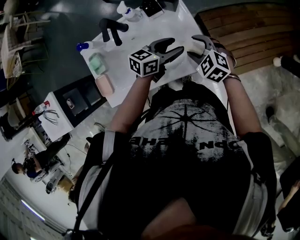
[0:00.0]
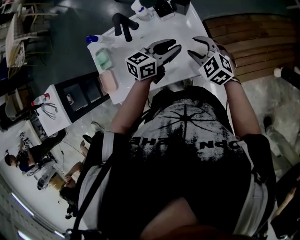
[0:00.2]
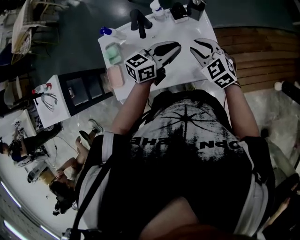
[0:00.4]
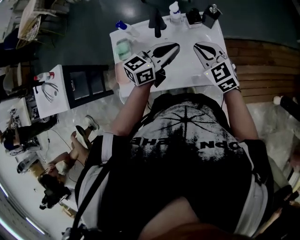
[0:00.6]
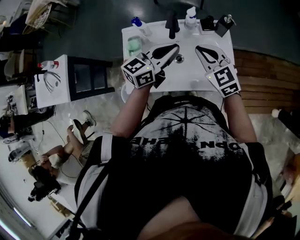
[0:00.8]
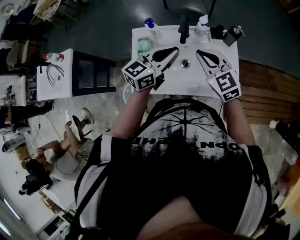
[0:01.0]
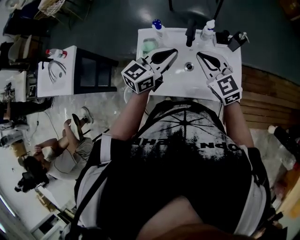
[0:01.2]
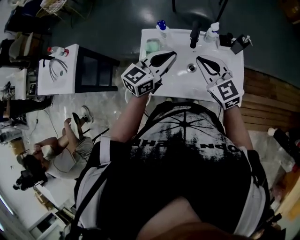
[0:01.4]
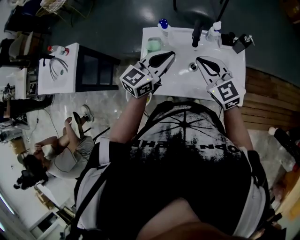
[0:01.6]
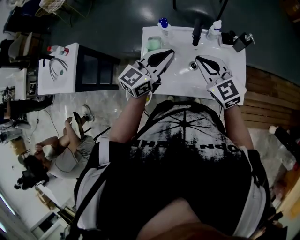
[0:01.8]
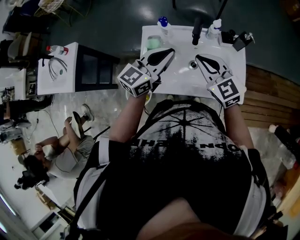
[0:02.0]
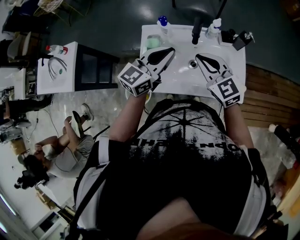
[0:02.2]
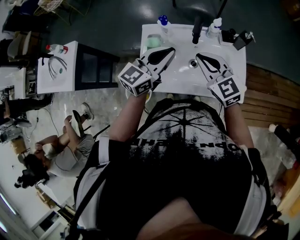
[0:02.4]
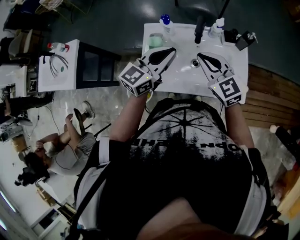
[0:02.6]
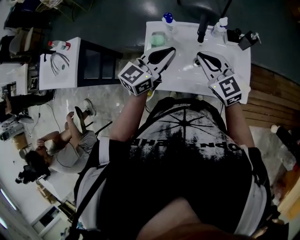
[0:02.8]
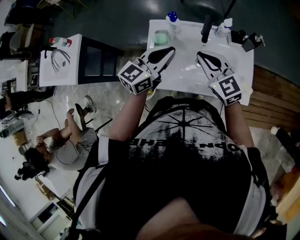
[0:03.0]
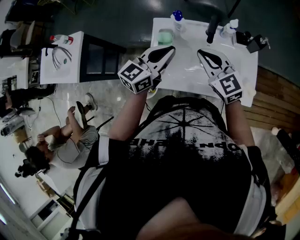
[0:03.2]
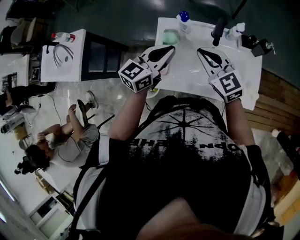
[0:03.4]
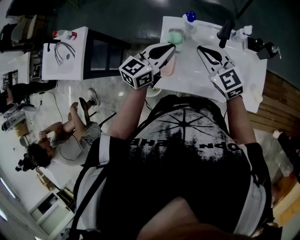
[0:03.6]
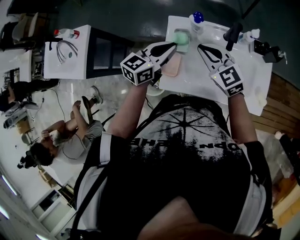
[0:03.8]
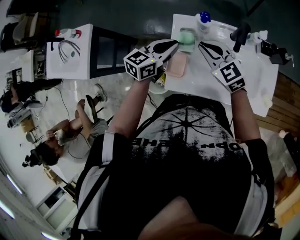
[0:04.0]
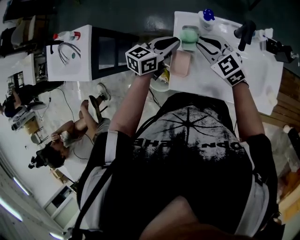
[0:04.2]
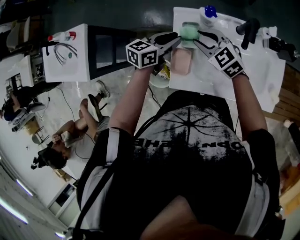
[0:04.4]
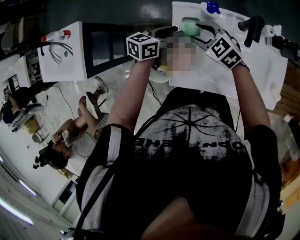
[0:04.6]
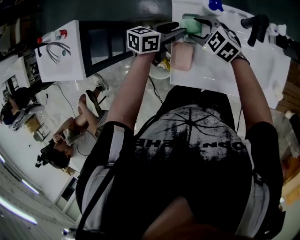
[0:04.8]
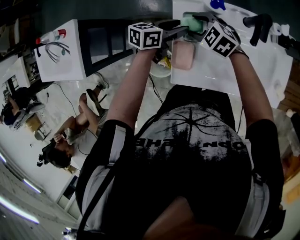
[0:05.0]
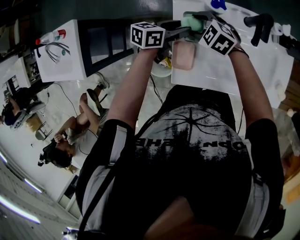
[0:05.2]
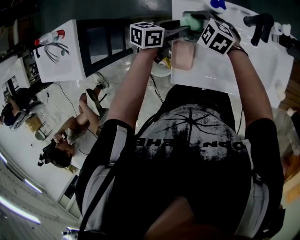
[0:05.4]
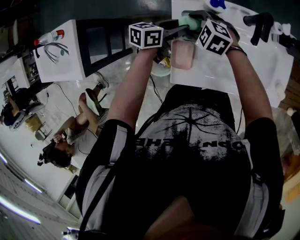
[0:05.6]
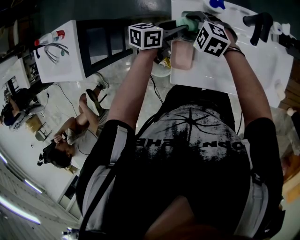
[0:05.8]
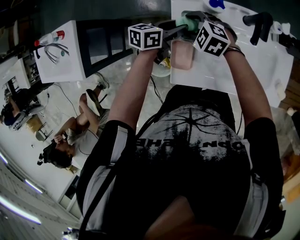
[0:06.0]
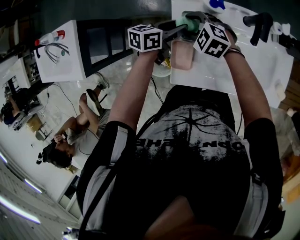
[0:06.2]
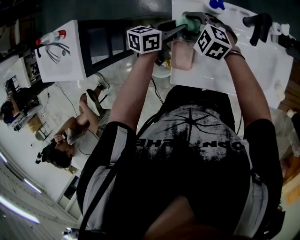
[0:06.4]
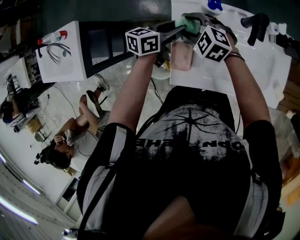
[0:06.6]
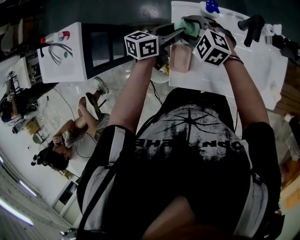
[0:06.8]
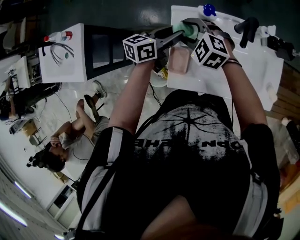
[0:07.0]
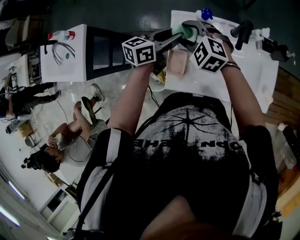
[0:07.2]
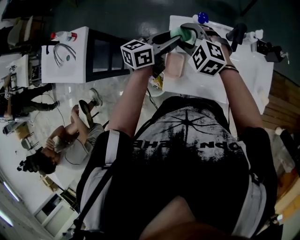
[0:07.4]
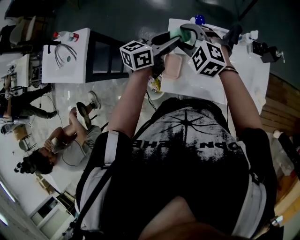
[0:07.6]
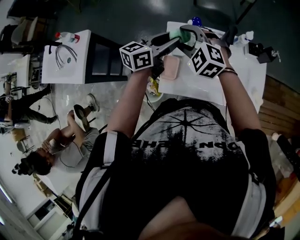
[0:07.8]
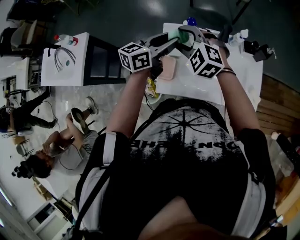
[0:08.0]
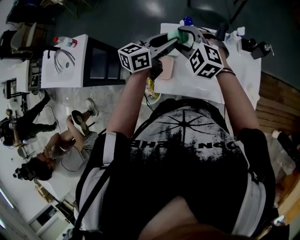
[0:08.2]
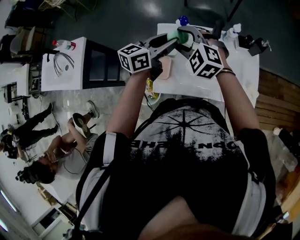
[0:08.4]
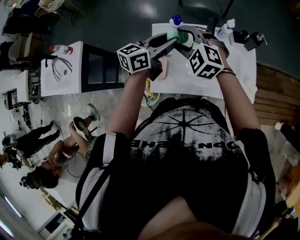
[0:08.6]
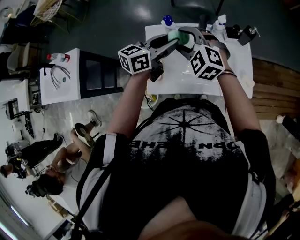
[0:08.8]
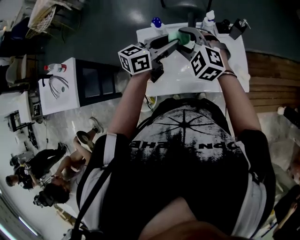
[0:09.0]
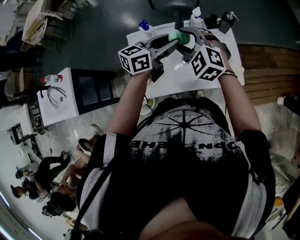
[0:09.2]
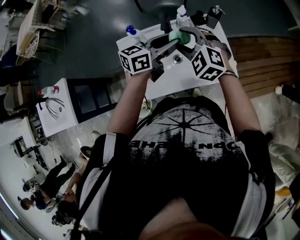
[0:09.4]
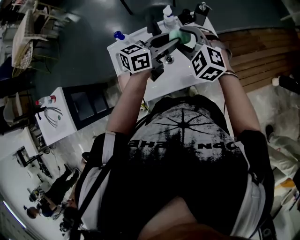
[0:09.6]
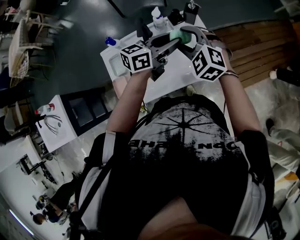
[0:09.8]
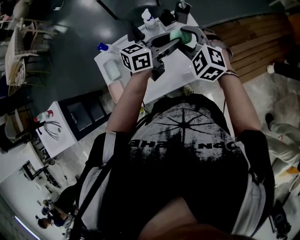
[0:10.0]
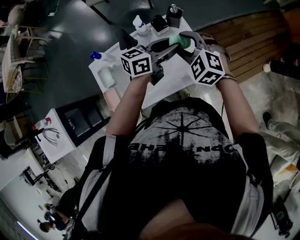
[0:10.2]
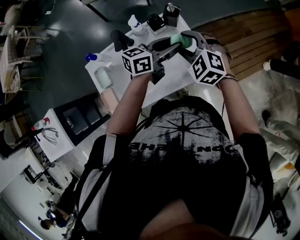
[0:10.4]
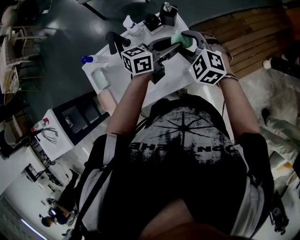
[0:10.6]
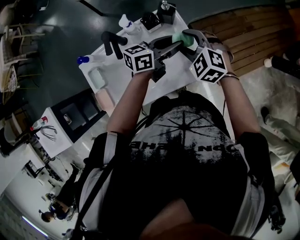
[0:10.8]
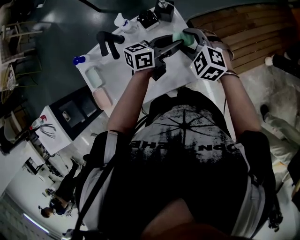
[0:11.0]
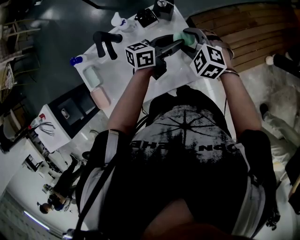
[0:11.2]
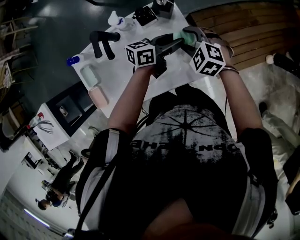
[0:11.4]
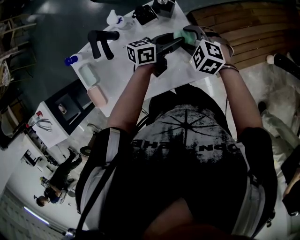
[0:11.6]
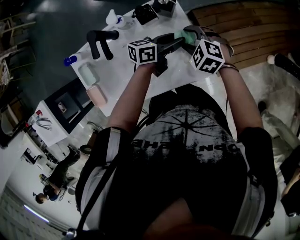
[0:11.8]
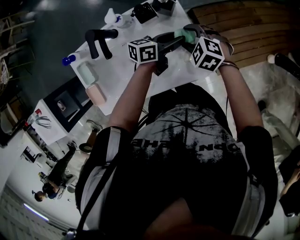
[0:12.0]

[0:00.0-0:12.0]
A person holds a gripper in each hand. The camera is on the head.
0:00.0 to 0:01.6: The right gripper moves roughly 30 cm, points its fingers approximately 30 degrees further upward, and closes its fingers; the left gripper changes place by some 35 cm, swivels about 40 degrees, and closes up.
0:01.6 to 0:03.0: The grippers stay close to where they were, moving slightly.
0:03.0 to 0:04.4: The right gripper travels to the left, downward and forward by some 20 cm, changes its angle by about 20 degrees, and opens its fingers, while the left gripper travels downward, to the left and forward by roughly 20 cm, and changes its angle by some 30 degrees.
0:04.4 to 0:06.0: The grippers both shift downward by some 10 cm. The right gripper changes its angle by approximately 20 degrees, and opens its fingers.
0:06.0 to 0:07.6: The two grippers go some 15 cm upward. The left gripper rotates roughly 20 degrees. The right gripper swivels approximately 20 degrees.
0:07.6 to 0:09.0: The two grippers go approximately 15 cm to the right.
0:09.0 to 0:10.4: Both grippers travel together to the right and forward, about 25 cm. The left gripper changes its angle by some 20 degrees. Meanwhile the right gripper swivels approximately 20 degrees.
0:10.4 to 0:12.0: Both grippers move downward, some 15 cm. The right gripper rotates approximately 20 degrees.

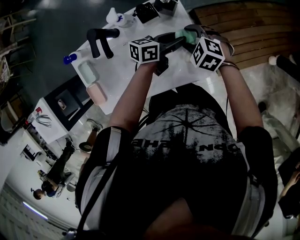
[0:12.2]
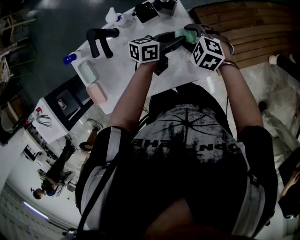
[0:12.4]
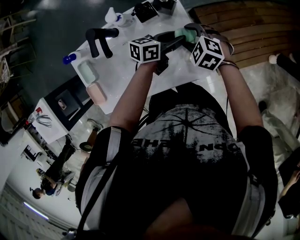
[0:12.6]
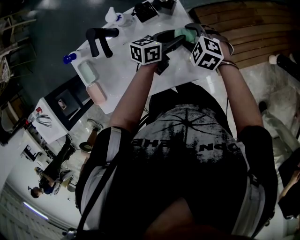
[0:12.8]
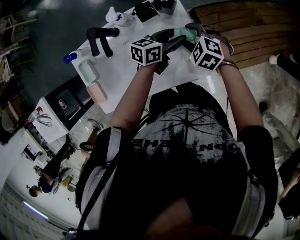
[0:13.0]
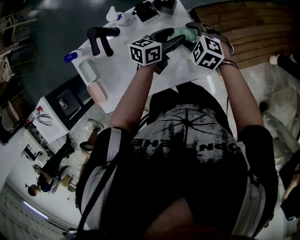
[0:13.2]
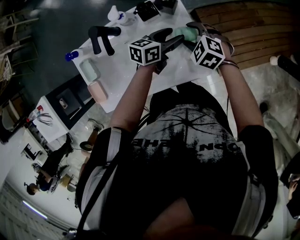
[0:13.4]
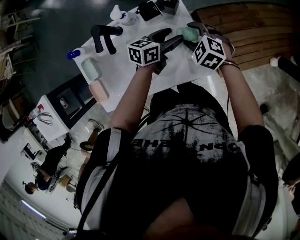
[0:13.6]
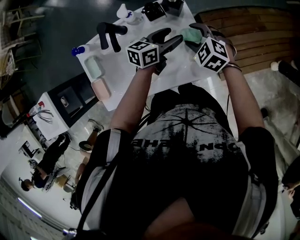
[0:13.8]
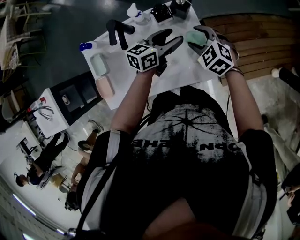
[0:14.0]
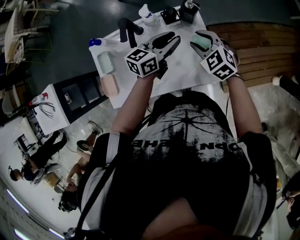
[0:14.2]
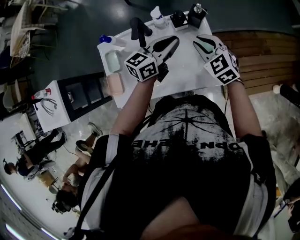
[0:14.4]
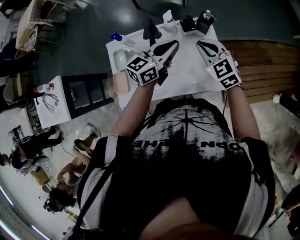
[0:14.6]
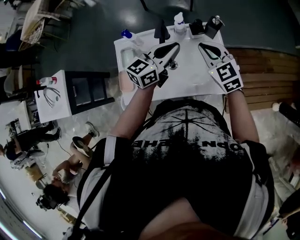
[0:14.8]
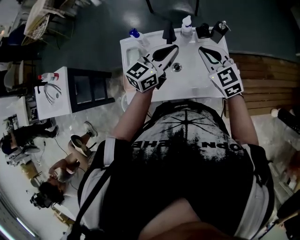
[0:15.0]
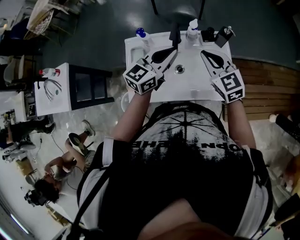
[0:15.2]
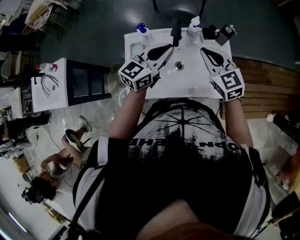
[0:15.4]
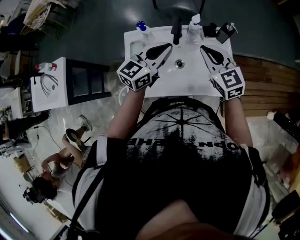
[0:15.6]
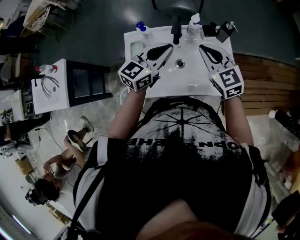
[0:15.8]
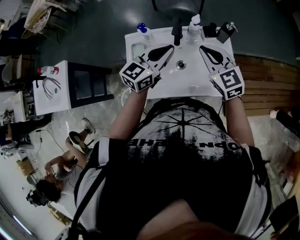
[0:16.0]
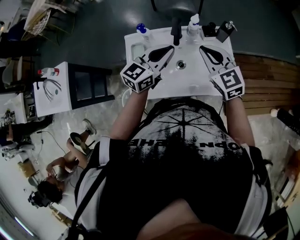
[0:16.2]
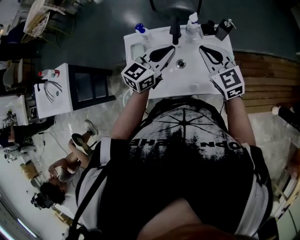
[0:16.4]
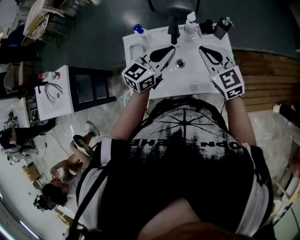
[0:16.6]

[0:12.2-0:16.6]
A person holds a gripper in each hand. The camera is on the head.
0:12.2 to 0:13.6: The left gripper opens up.
0:13.6 to 0:15.2: The left gripper travels to the left, upward and backward by about 35 cm, turns by approximately 40 degrees, and closes its fingers. The right gripper goes roughly 25 cm upward and to the left, points its fingers some 30 degrees further upward, and closes its fingers.
0:15.2 to 0:16.6: The grippers make only small movements.

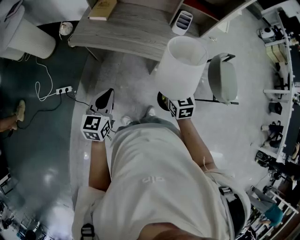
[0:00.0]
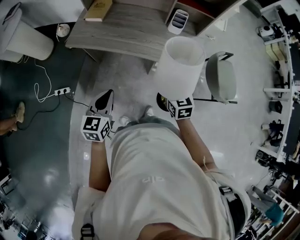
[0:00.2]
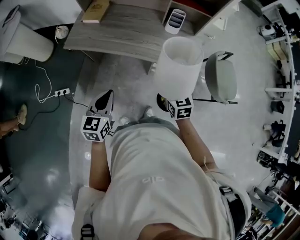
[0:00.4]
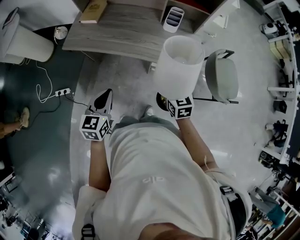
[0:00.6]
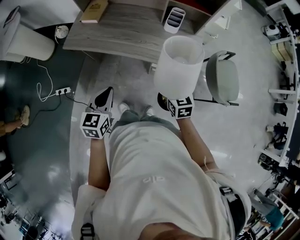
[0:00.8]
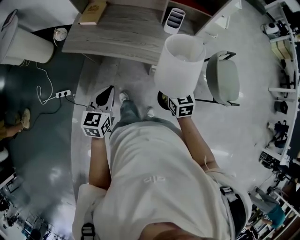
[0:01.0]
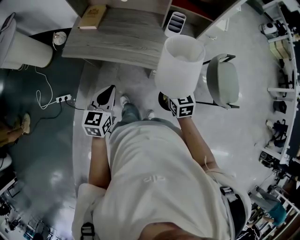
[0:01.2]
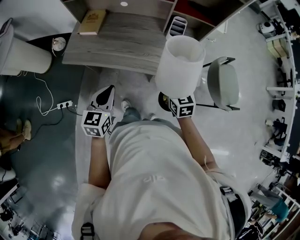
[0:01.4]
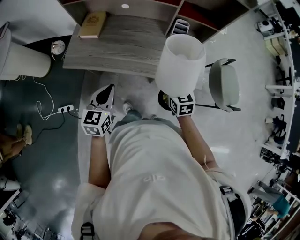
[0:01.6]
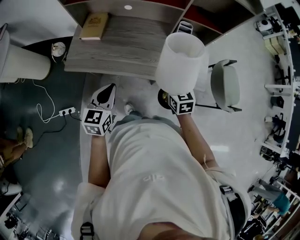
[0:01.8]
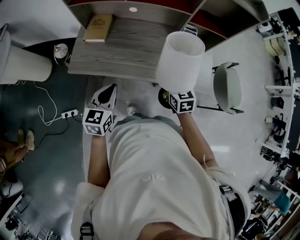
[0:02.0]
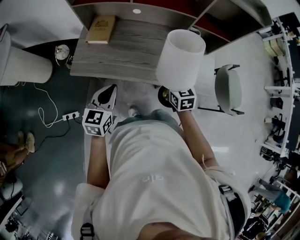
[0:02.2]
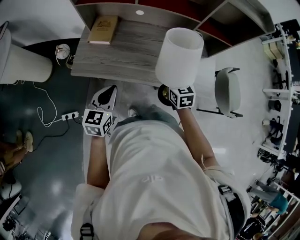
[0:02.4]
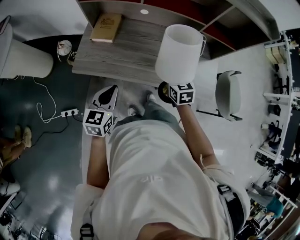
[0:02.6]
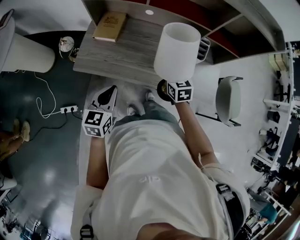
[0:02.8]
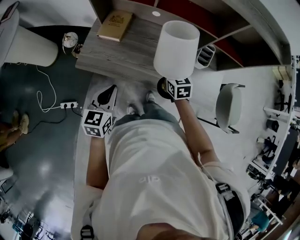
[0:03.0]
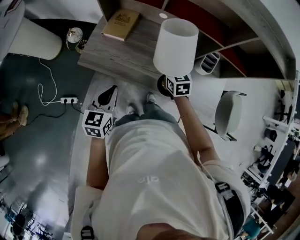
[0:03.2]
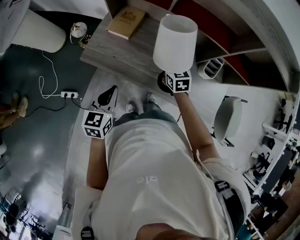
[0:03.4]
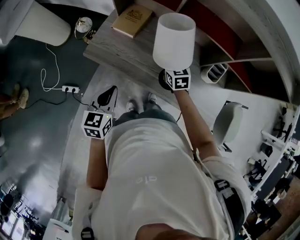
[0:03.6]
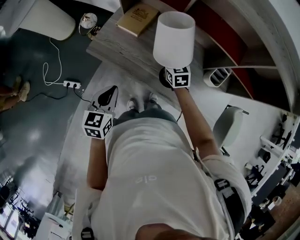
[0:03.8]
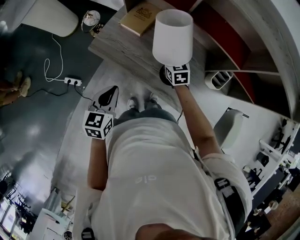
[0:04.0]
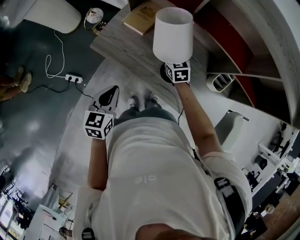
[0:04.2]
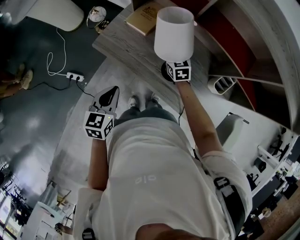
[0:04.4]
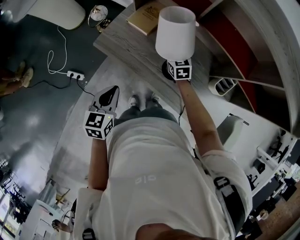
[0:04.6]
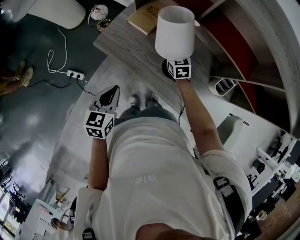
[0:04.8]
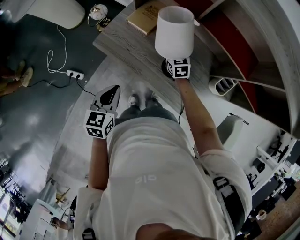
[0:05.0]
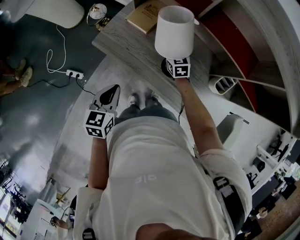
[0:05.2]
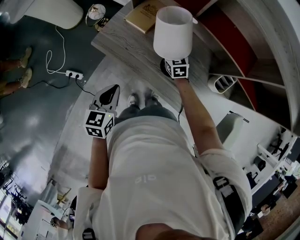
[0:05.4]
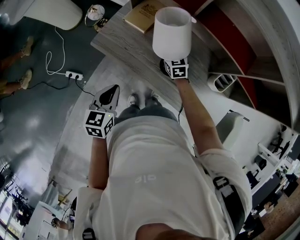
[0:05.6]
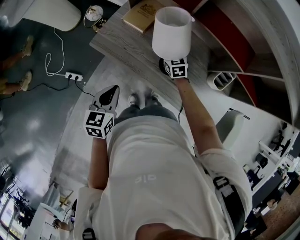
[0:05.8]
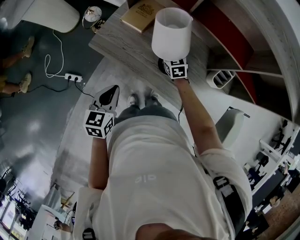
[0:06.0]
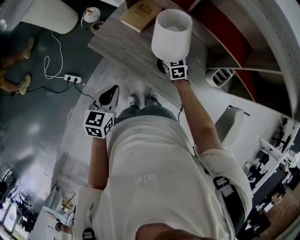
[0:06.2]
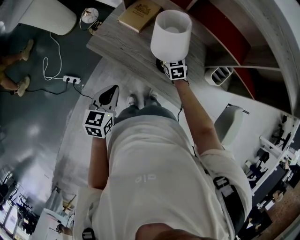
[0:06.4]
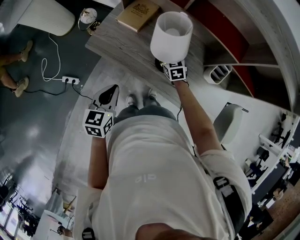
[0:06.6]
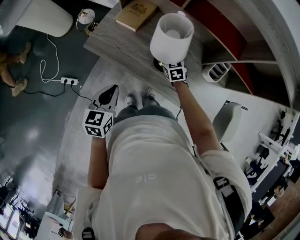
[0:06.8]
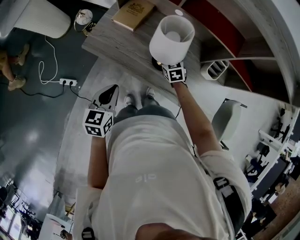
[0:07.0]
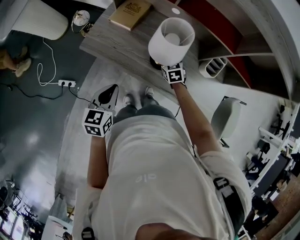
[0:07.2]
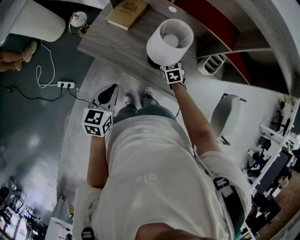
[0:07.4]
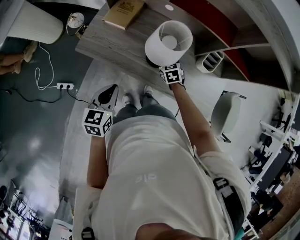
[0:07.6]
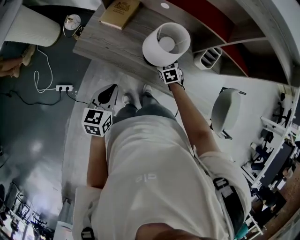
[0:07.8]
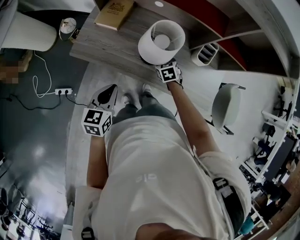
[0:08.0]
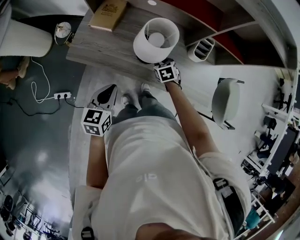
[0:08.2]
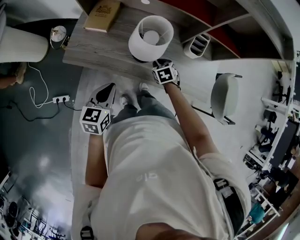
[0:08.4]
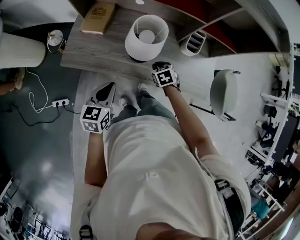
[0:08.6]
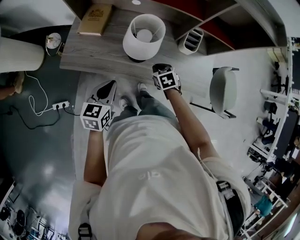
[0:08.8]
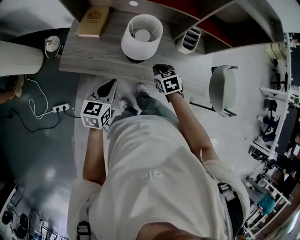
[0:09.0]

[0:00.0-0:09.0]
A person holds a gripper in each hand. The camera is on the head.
0:00.0 to 0:01.6: The grippers both shift forward by roughly 15 cm.
0:01.6 to 0:03.0: The right gripper goes roughly 25 cm forward and to the left. Meanwhile the left gripper is displaced to the left and forward by some 15 cm.
0:03.0 to 0:04.4: The right gripper moves forward, to the left and downward, approximately 20 cm, and swivels about 20 degrees.
0:04.4 to 0:06.0: There are only small adjustments of the grippers.
0:06.0 to 0:07.6: The right gripper shifts about 10 cm backward and to the right.
0:07.6 to 0:09.0: The left gripper moves to the right, approximately 5 cm; the right gripper moves backward, upward and to the right, some 15 cm, and closes up.